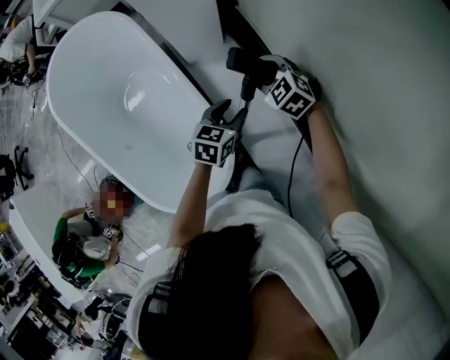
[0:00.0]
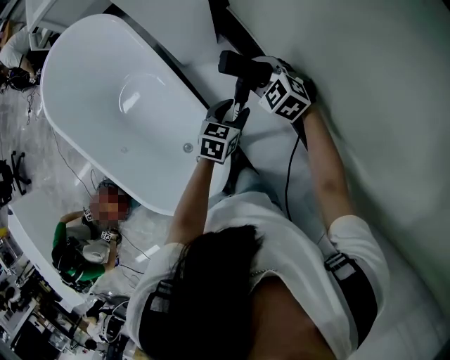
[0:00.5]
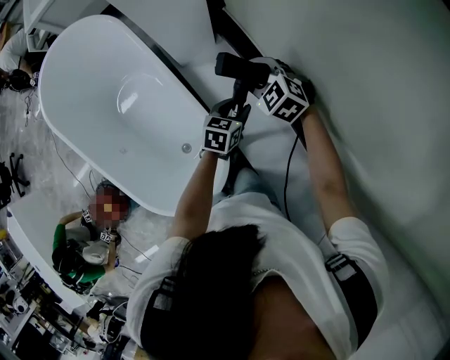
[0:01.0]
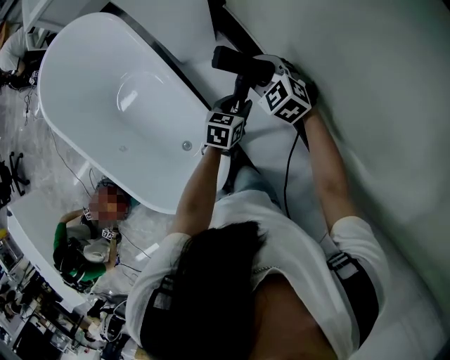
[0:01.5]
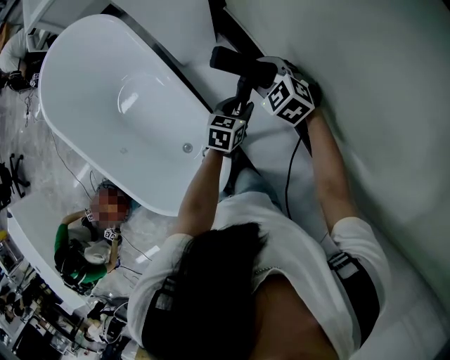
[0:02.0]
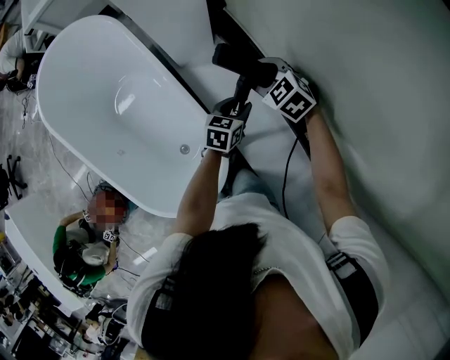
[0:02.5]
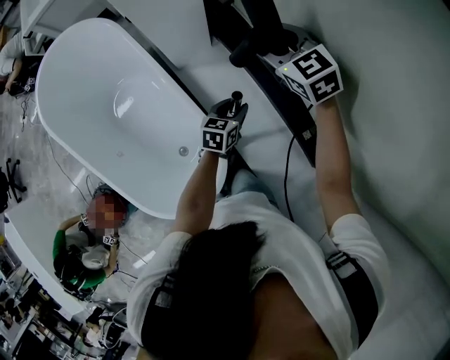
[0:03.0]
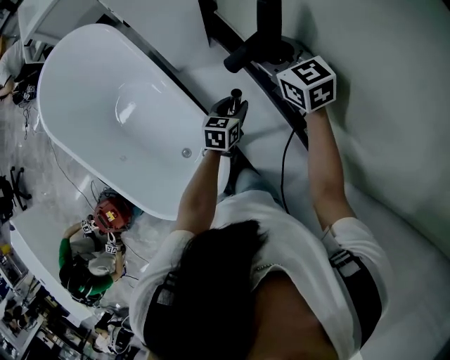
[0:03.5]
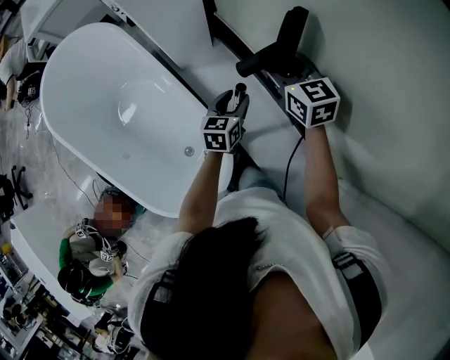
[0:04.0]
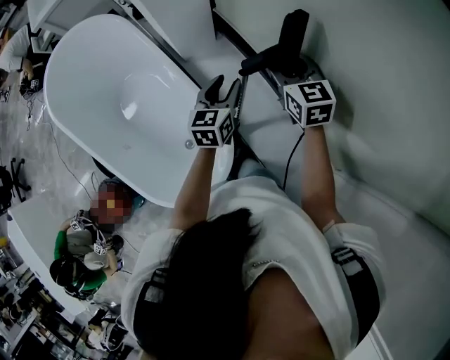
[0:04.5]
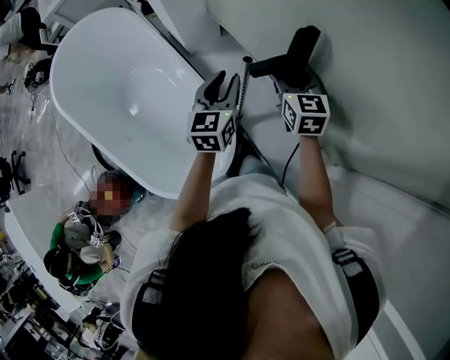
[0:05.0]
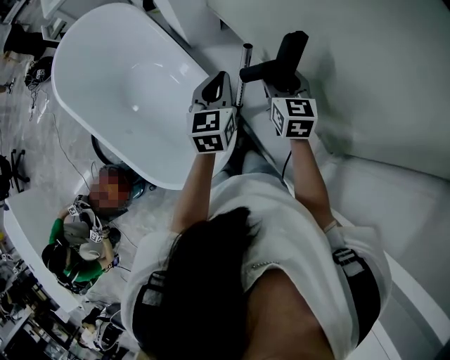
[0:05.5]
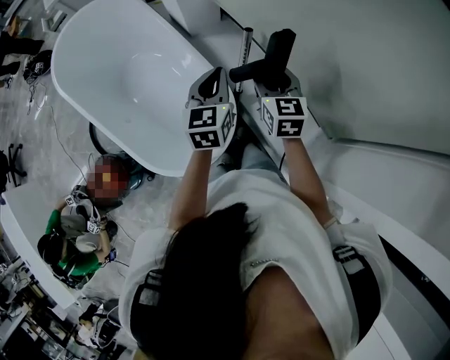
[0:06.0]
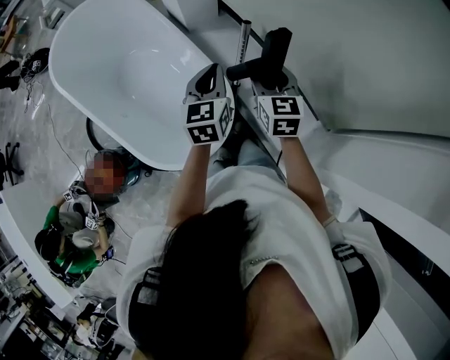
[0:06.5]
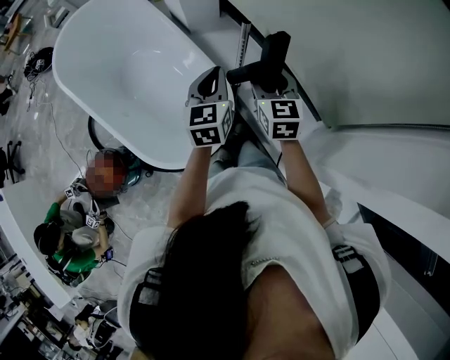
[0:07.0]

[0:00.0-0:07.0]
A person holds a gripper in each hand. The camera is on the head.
0:00.0 to 0:02.0: The left gripper goes approximately 5 cm downward.
0:02.0 to 0:03.5: The right gripper goes some 15 cm upward, and turns by roughly 40 degrees.
0:03.5 to 0:05.0: The right gripper heads backward, covering about 15 cm, and swivels roughly 20 degrees. The left gripper shifts roughly 20 cm upward and backward, and changes its angle by roughly 30 degrees.
0:05.0 to 0:07.0: The left gripper is displaced backward by about 15 cm, and closes up. Meanwhile the right gripper shifts roughly 20 cm backward and to the left.

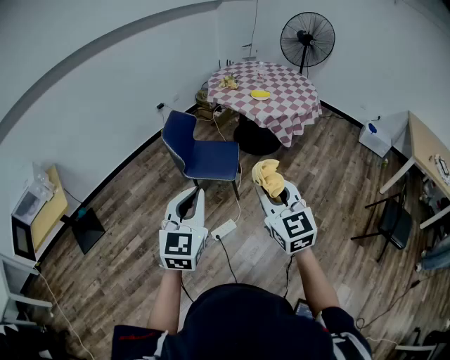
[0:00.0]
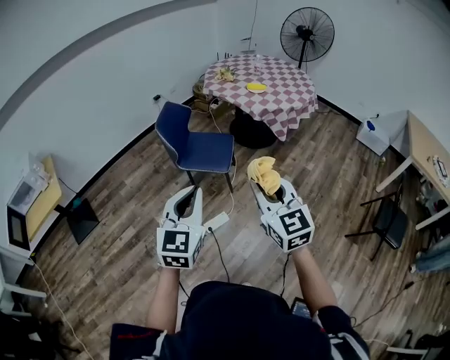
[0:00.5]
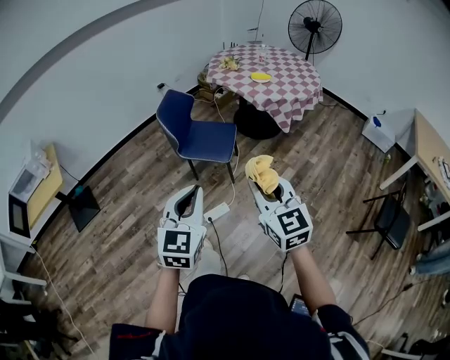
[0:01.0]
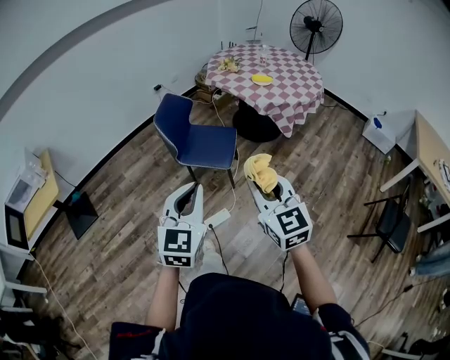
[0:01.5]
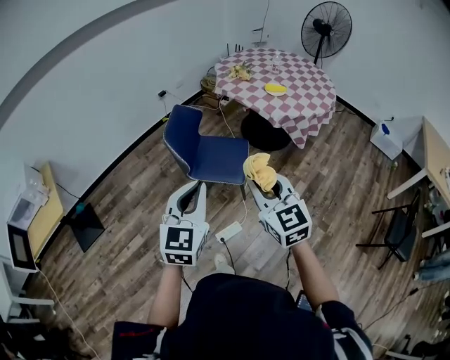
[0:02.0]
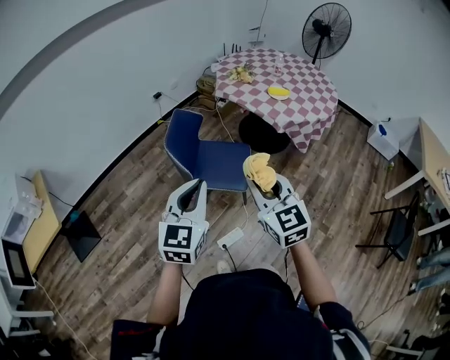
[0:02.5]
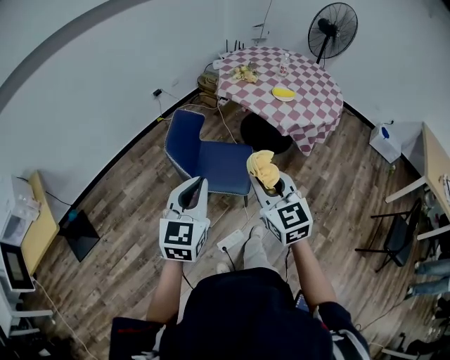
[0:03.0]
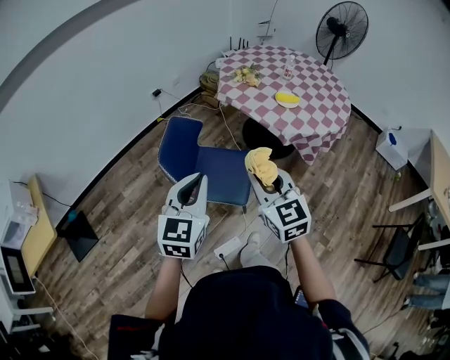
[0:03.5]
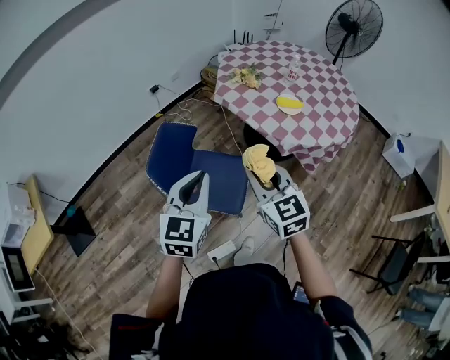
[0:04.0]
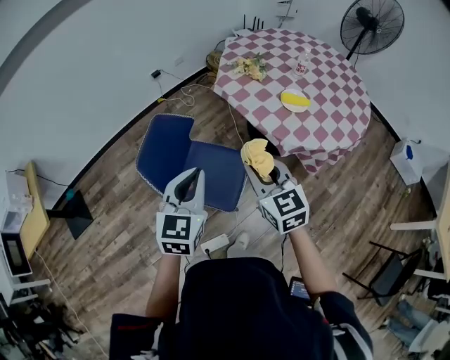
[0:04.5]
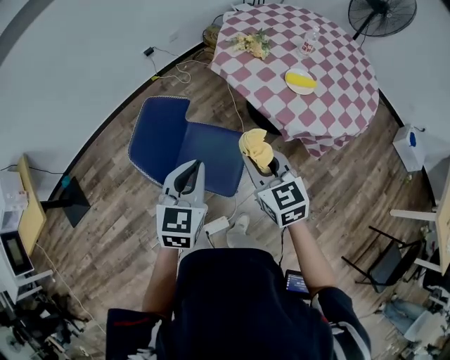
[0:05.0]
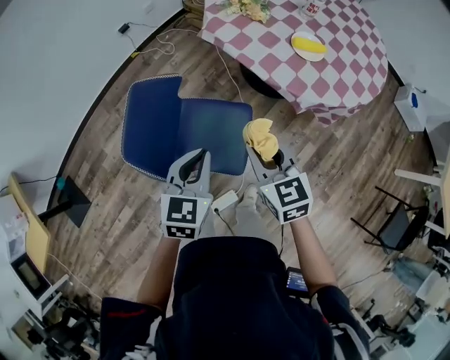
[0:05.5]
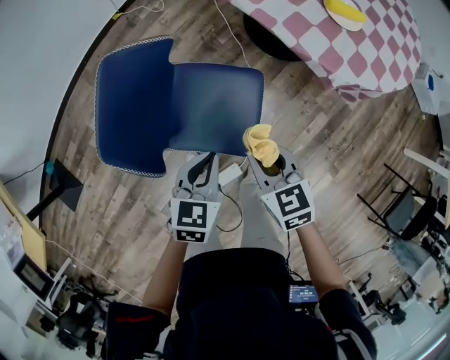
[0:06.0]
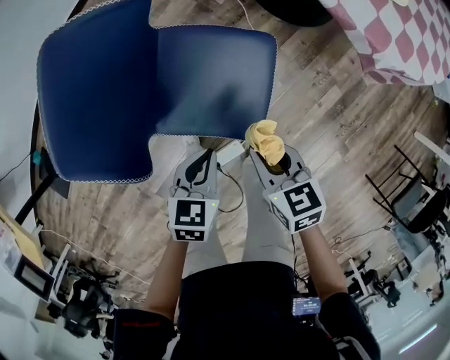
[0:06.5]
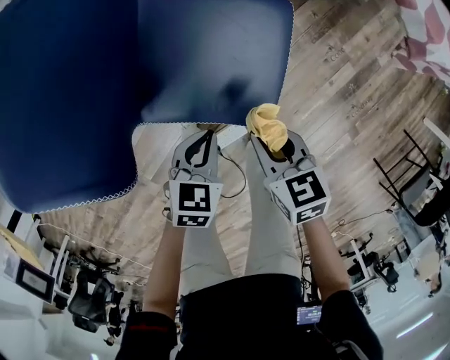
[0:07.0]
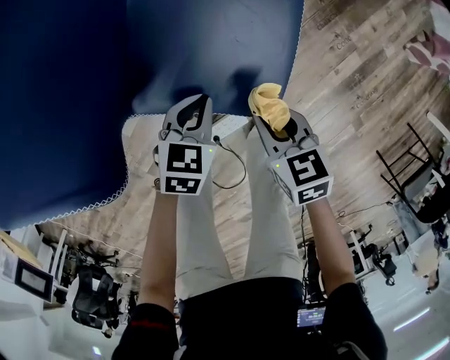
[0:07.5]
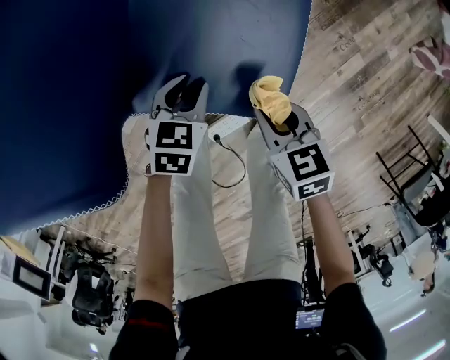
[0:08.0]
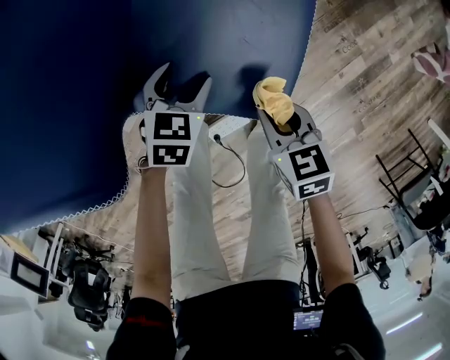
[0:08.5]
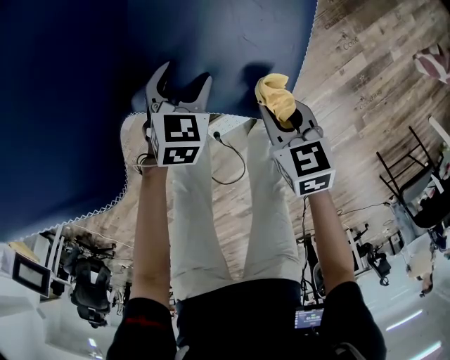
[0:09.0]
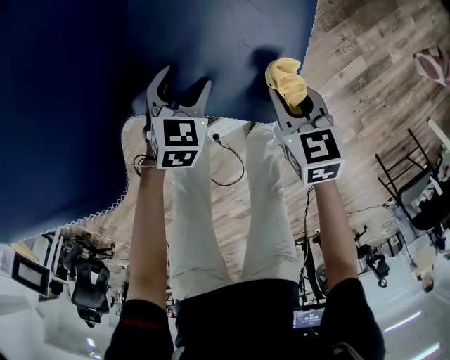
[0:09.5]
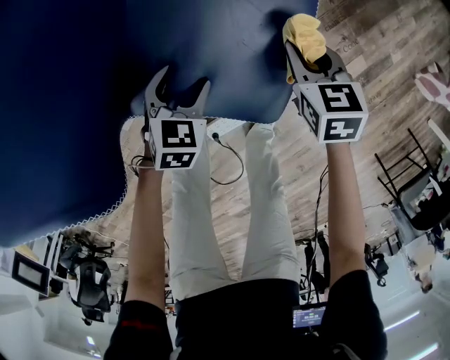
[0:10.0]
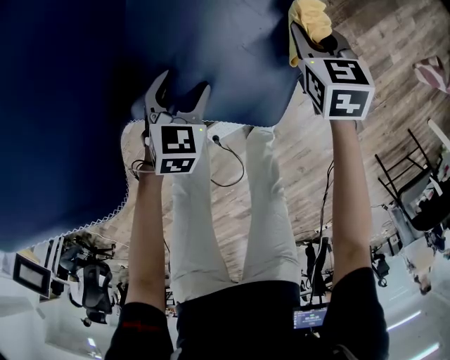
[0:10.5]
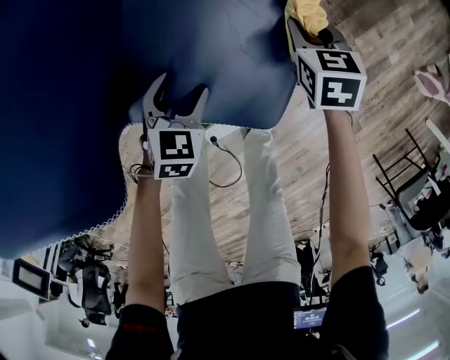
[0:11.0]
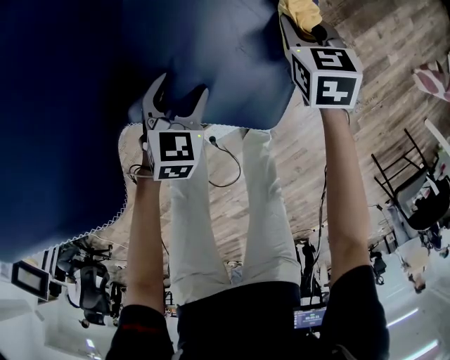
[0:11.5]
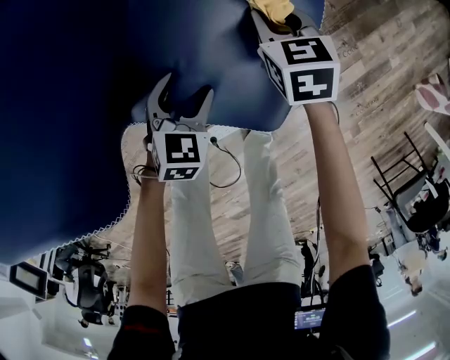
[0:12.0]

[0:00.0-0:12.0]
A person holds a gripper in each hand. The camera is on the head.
0:00.0 to 0:02.0: The two grippers go about 20 cm forward.
0:02.0 to 0:04.0: The grippers both shift forward by some 35 cm.
0:04.0 to 0:06.0: Both grippers move downward, roughly 35 cm. The left gripper swivels some 30 degrees, while the right gripper changes its angle by approximately 30 degrees.
0:06.0 to 0:08.0: Both grippers travel together downward, roughly 35 cm.
0:08.0 to 0:10.0: The right gripper is displaced forward and to the right by some 15 cm. The left gripper opens up.
0:10.0 to 0:12.0: The right gripper heads to the left and forward, covering some 10 cm.

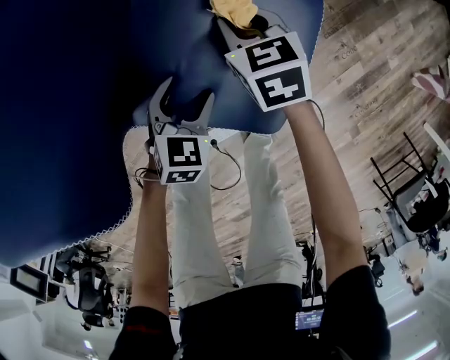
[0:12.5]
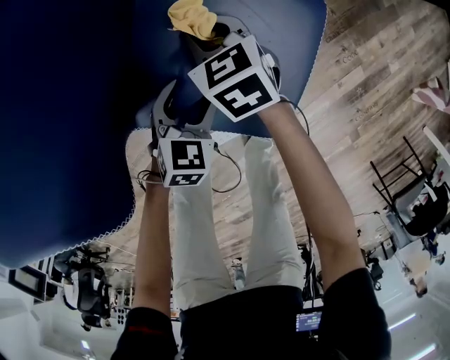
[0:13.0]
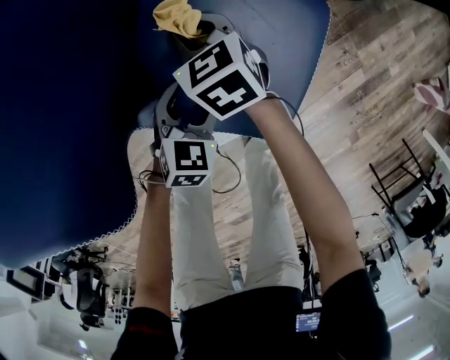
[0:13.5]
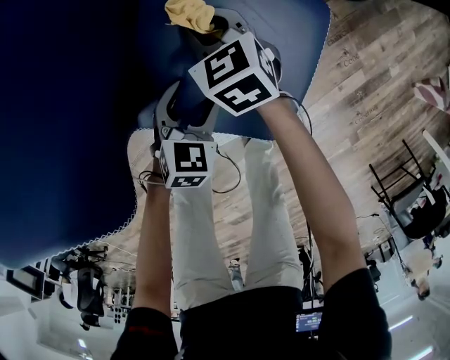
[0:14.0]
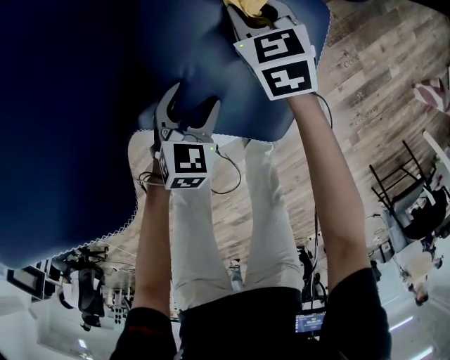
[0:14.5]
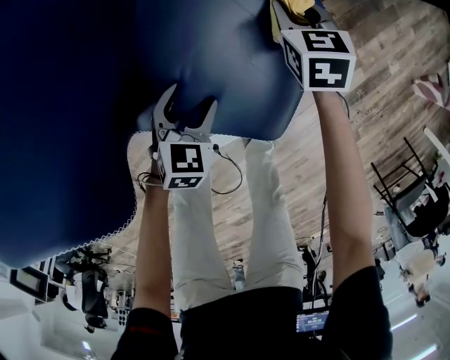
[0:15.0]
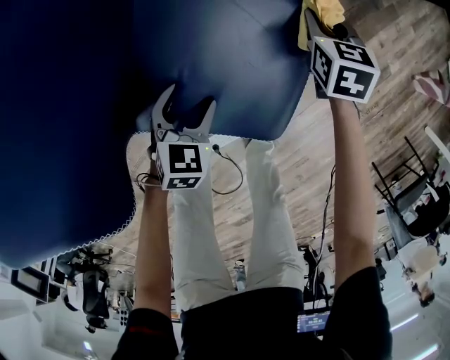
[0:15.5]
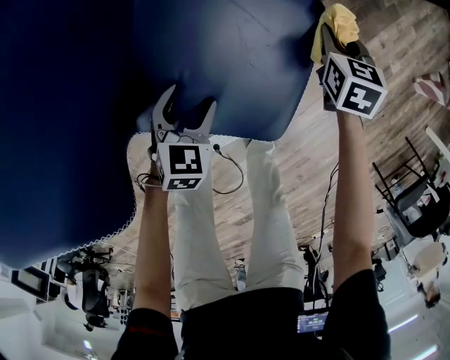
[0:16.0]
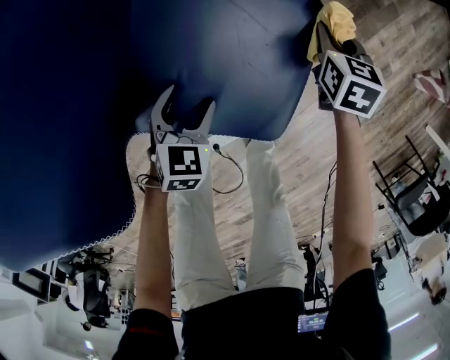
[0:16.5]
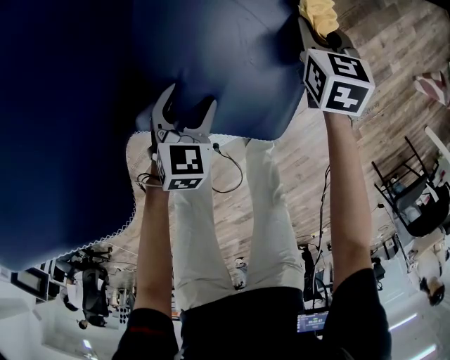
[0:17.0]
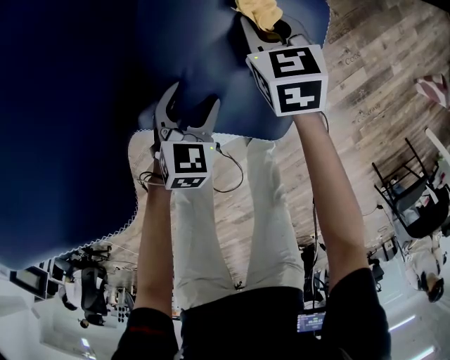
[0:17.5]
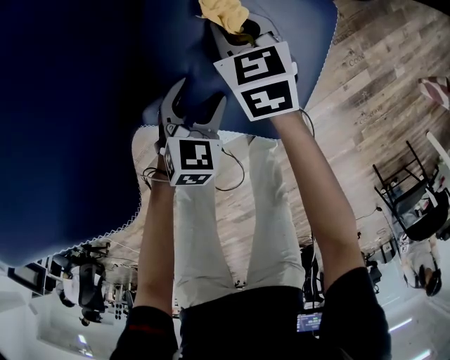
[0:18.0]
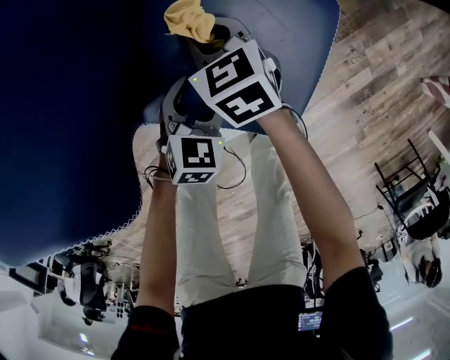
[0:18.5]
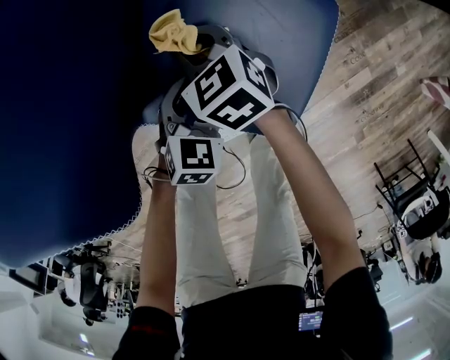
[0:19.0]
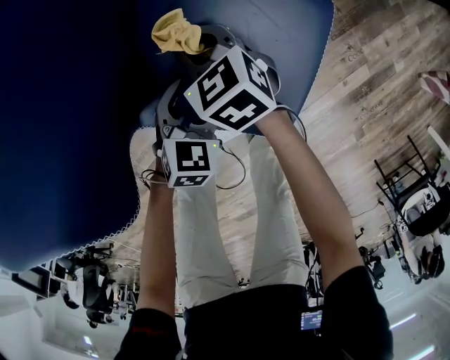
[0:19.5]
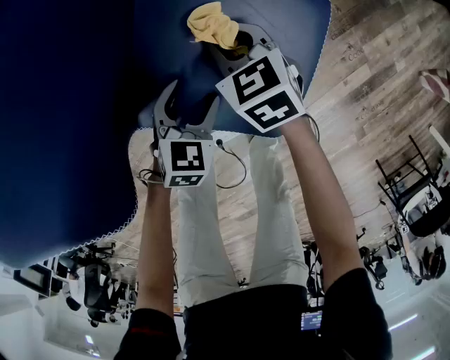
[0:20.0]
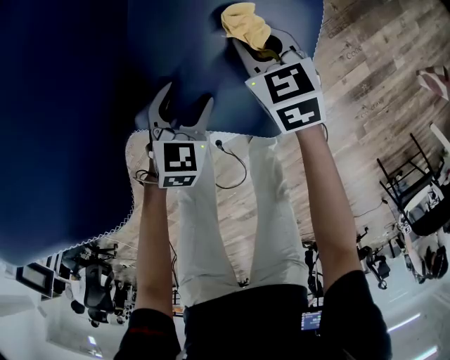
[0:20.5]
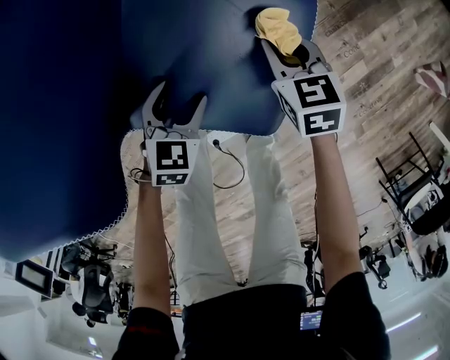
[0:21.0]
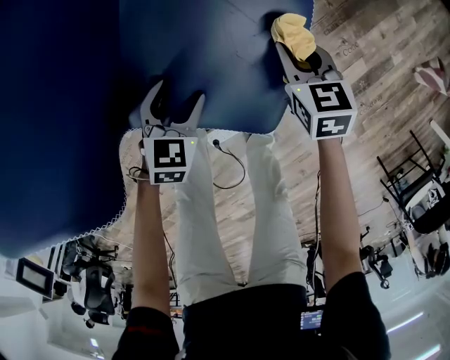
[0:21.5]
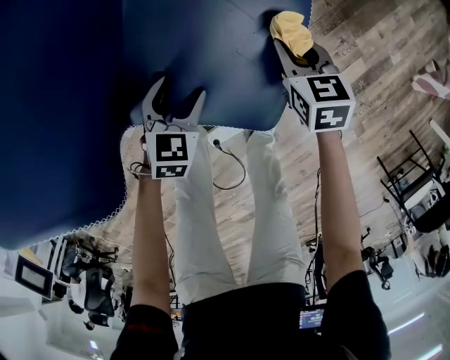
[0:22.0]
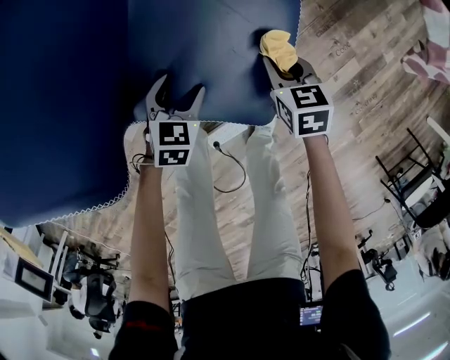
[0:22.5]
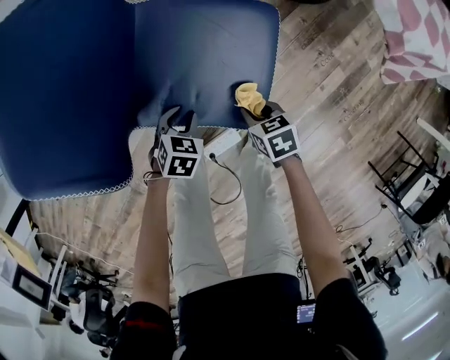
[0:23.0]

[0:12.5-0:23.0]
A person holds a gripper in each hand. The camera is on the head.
0:12.5 to 0:14.5: The right gripper reaches approximately 10 cm to the left, then returns.
0:14.5 to 0:16.5: The right gripper travels to the right by approximately 20 cm, and swivels about 30 degrees.
0:16.5 to 0:19.0: The right gripper shifts by roughly 30 cm, and changes its angle by about 50 degrees.
0:19.0 to 0:21.0: The right gripper shifts roughly 20 cm to the right, and rotates about 20 degrees.
0:21.0 to 0:23.0: The right gripper heads backward, covering some 15 cm, and turns by some 20 degrees; the left gripper goes some 5 cm backward, and closes up.
